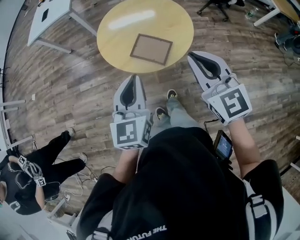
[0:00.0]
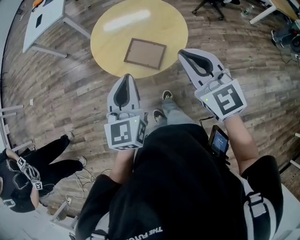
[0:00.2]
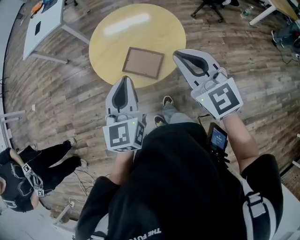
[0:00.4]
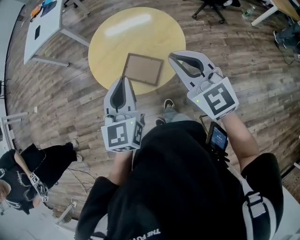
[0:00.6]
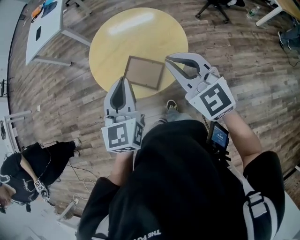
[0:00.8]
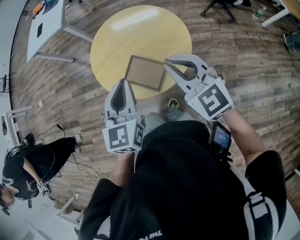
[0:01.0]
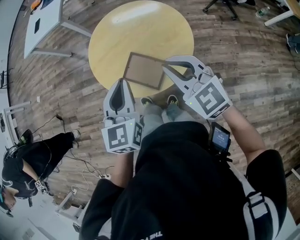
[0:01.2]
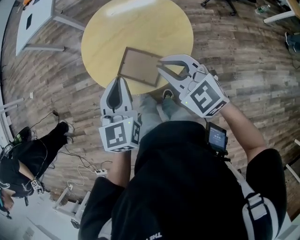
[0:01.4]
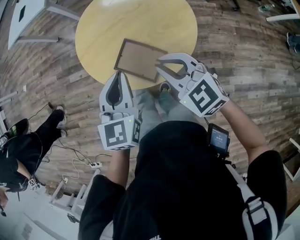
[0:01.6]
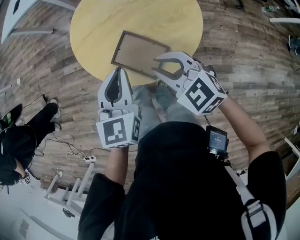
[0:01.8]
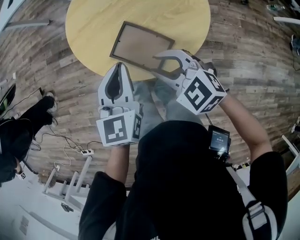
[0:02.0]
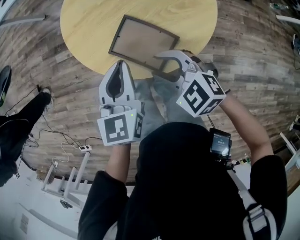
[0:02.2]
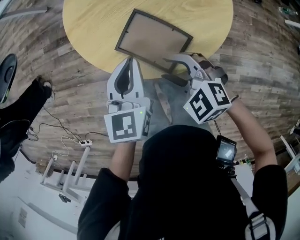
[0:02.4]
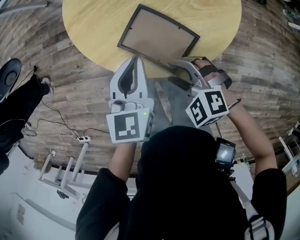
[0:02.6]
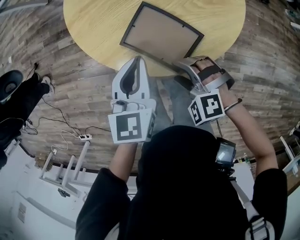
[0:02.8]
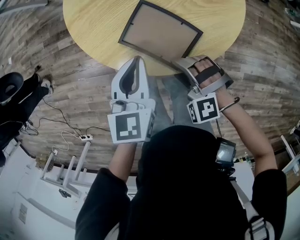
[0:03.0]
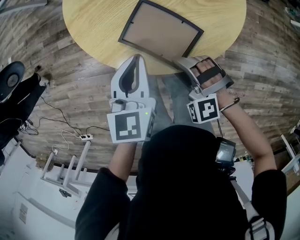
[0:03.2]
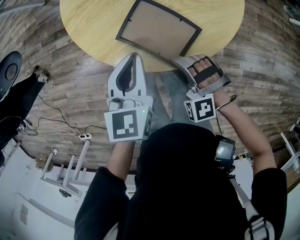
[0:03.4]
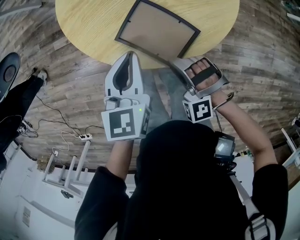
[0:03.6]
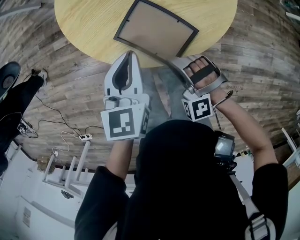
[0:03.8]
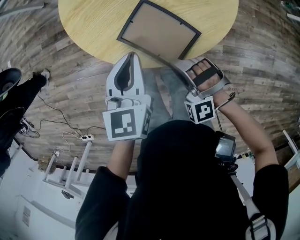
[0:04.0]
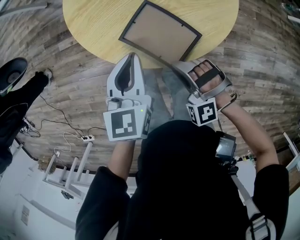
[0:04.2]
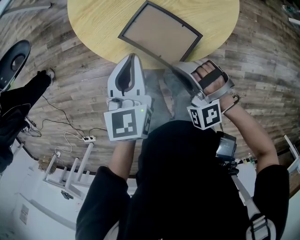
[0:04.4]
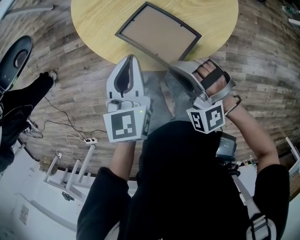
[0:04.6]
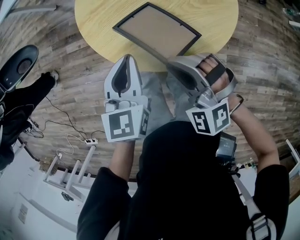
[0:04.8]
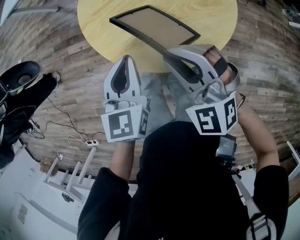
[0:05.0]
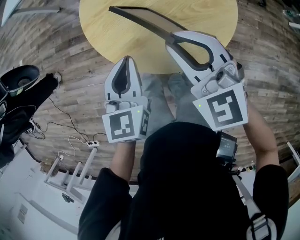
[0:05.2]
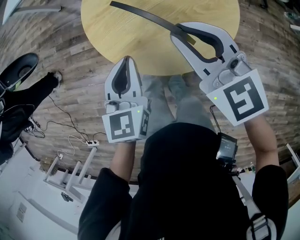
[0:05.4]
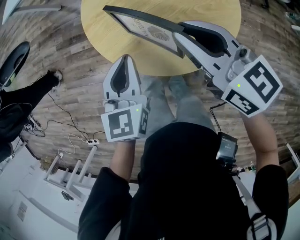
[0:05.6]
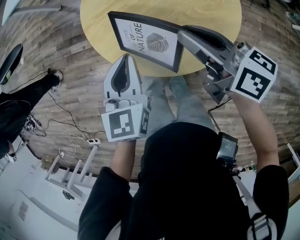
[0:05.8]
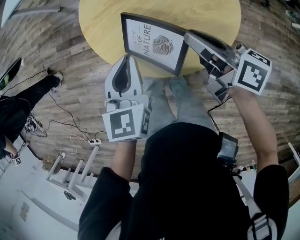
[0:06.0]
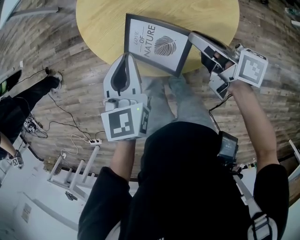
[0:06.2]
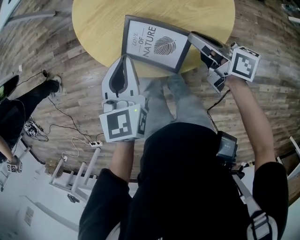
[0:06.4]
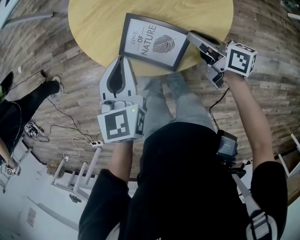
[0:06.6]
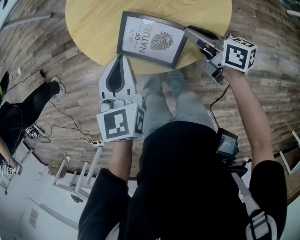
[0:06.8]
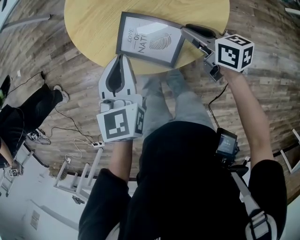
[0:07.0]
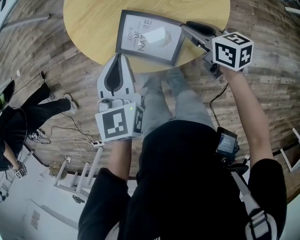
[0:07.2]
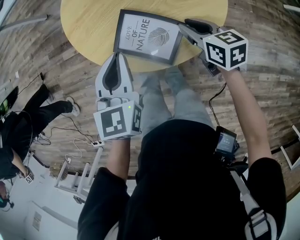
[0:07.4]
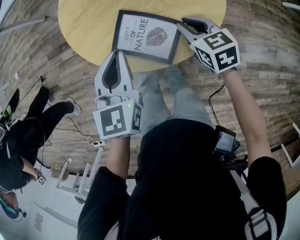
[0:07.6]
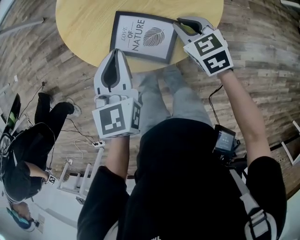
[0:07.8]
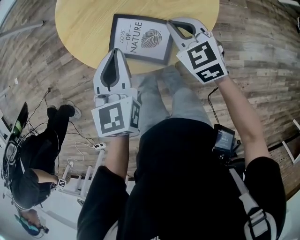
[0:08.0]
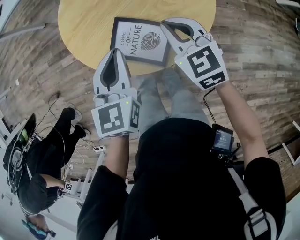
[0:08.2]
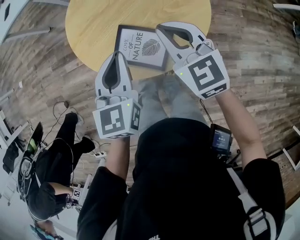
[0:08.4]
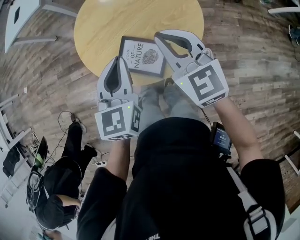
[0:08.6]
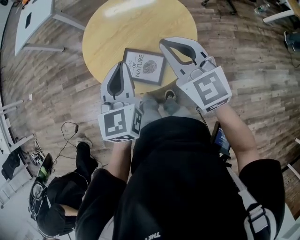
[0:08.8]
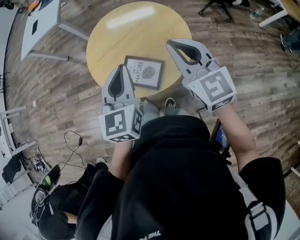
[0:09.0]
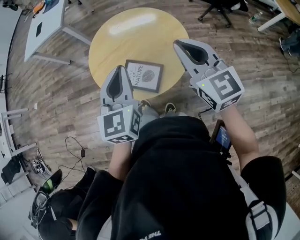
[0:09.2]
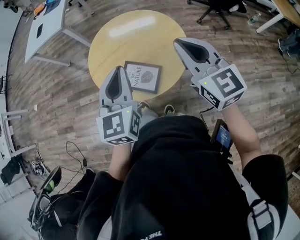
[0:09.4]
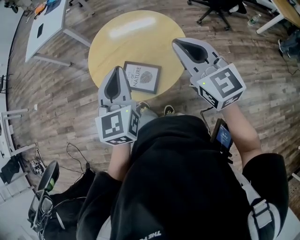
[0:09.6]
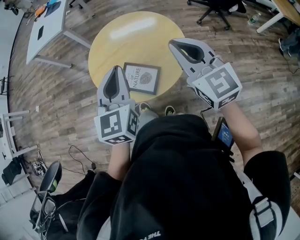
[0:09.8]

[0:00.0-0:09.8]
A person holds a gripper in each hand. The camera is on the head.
0:00.0 to 0:01.4: The left gripper shifts some 15 cm forward, to the right and downward; the right gripper heads forward and downward, covering some 15 cm, and rotates about 30 degrees.
0:01.4 to 0:02.8: The right gripper travels downward by about 25 cm, tips its fingers downward by about 30 degrees, and opens up. Meanwhile the left gripper goes roughly 15 cm downward.
0:02.8 to 0:04.2: The right gripper changes its angle by some 20 degrees, and closes its fingers.
0:04.2 to 0:05.6: The left gripper shifts by approximately 5 cm. Meanwhile the right gripper is displaced upward and forward by roughly 25 cm, and twists about 80 degrees clockwise, seen from behind.
0:05.6 to 0:07.0: The right gripper travels downward and to the right by roughly 20 cm, and swivels approximately 30 degrees.
0:07.0 to 0:08.4: The right gripper heads upward, covering some 15 cm, and rolls counterclockwise, seen from behind, by some 50 degrees, while the left gripper moves roughly 5 cm.
0:08.4 to 0:09.8: The left gripper moves upward, approximately 15 cm. Meanwhile the right gripper moves upward and to the right, roughly 20 cm.

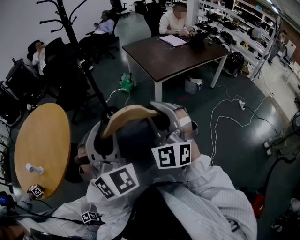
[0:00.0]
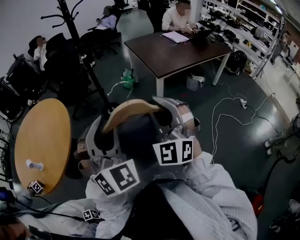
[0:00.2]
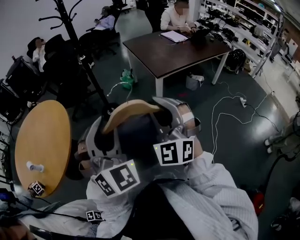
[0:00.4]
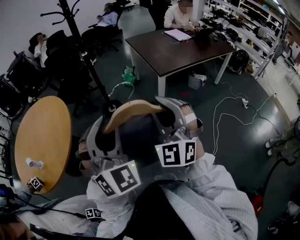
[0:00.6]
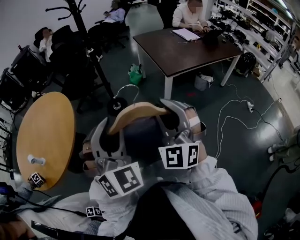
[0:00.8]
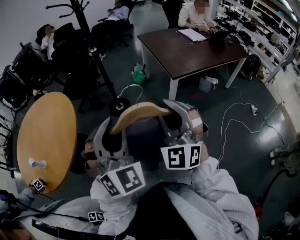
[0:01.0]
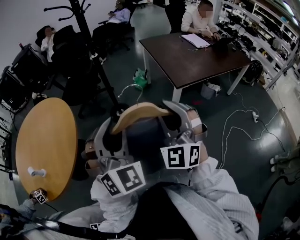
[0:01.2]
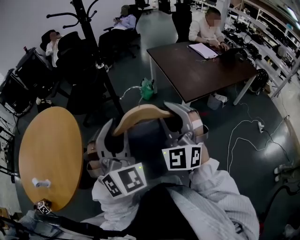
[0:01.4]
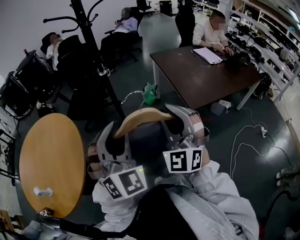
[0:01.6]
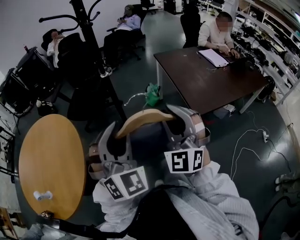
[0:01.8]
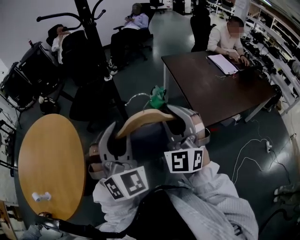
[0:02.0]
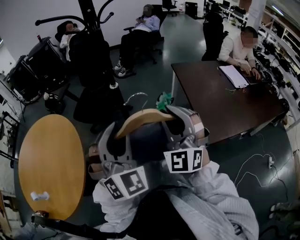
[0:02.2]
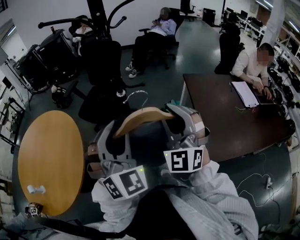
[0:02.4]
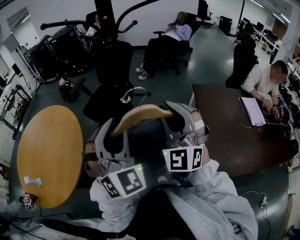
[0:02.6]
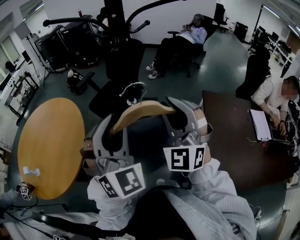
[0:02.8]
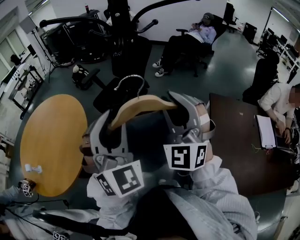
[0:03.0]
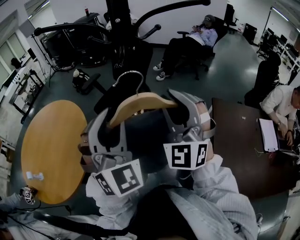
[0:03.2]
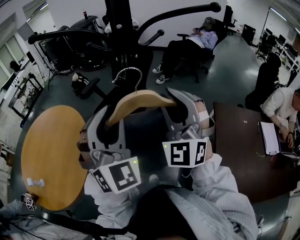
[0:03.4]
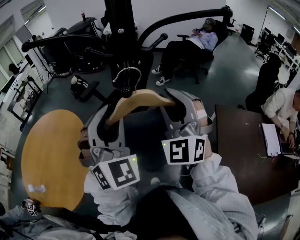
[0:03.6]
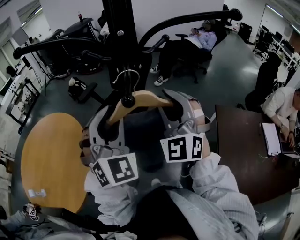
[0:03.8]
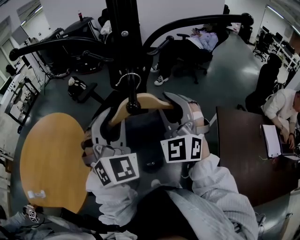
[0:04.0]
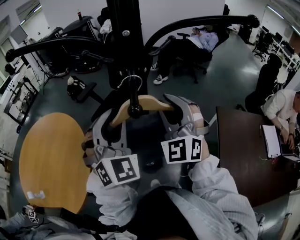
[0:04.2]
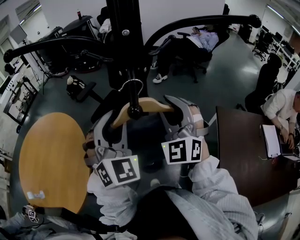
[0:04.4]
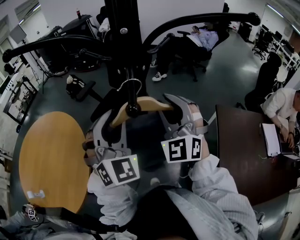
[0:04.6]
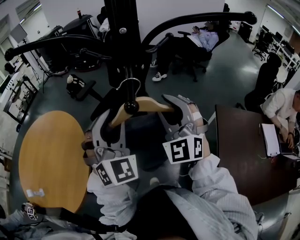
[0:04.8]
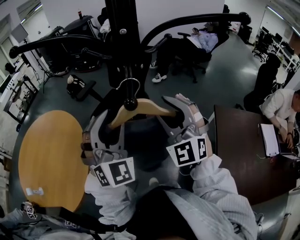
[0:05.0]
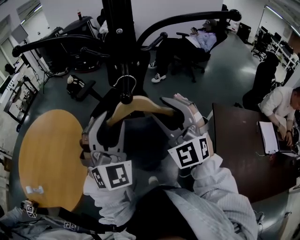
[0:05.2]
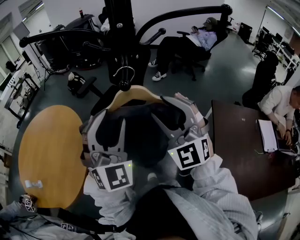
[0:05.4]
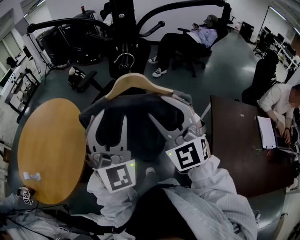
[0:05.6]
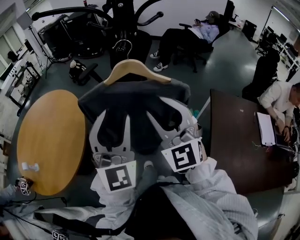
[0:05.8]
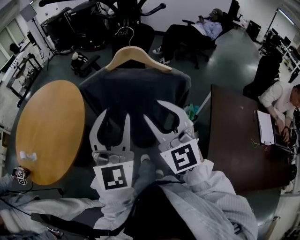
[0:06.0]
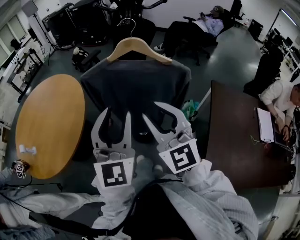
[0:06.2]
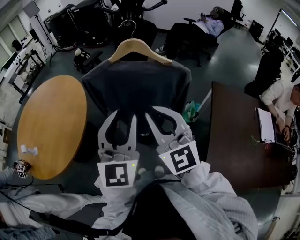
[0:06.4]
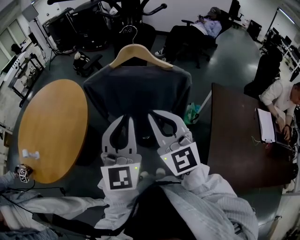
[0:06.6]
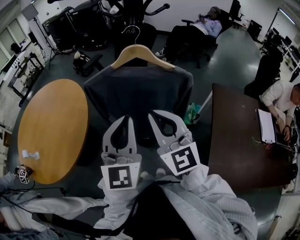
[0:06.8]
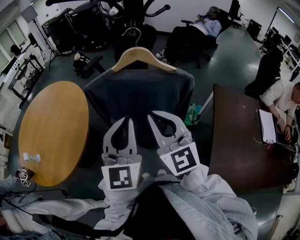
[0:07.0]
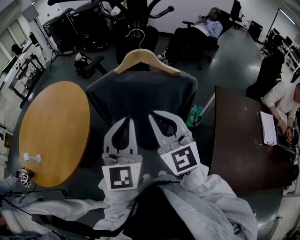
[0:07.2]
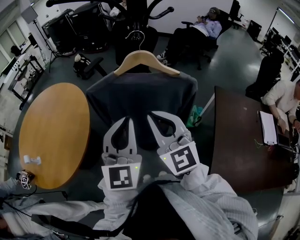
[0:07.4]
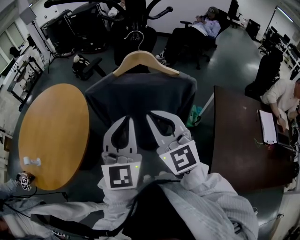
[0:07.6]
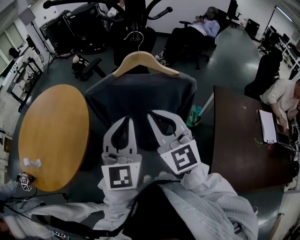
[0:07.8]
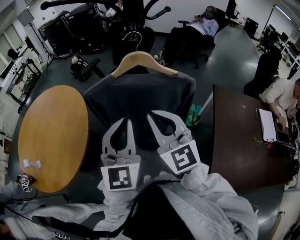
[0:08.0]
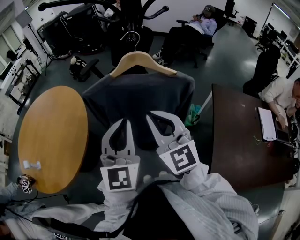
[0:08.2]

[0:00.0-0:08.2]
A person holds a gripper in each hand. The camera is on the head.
0:00.0 to 0:01.6: Both grippers move forward, some 35 cm.
0:01.6 to 0:03.2: The pair of grippers is taken approximately 50 cm. The right gripper swivels some 30 degrees. The left gripper swivels about 30 degrees.
0:03.2 to 0:05.0: The right gripper is displaced forward and downward by roughly 10 cm; the left gripper shifts approximately 10 cm forward.
0:05.0 to 0:06.6: Both grippers travel together backward, about 20 cm. The left gripper twists about 40 degrees counterclockwise, seen from behind, and closes; the right gripper rotates roughly 40 degrees, and closes.
0:06.6 to 0:08.2: There are only small adjustments of the grippers.

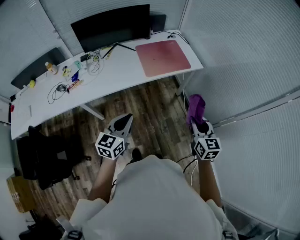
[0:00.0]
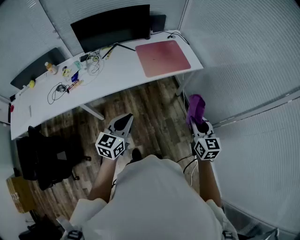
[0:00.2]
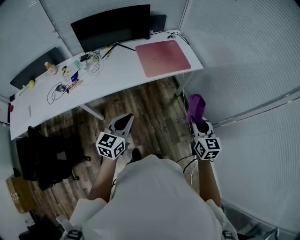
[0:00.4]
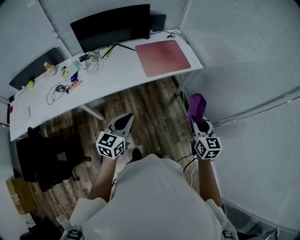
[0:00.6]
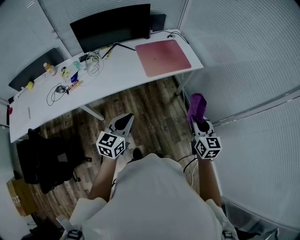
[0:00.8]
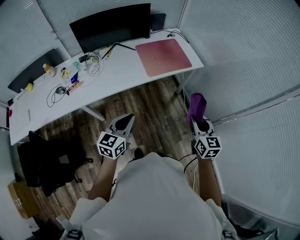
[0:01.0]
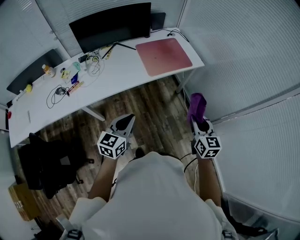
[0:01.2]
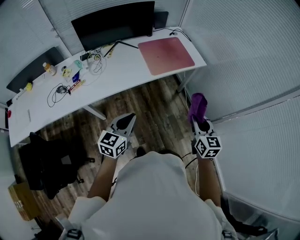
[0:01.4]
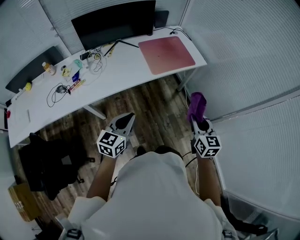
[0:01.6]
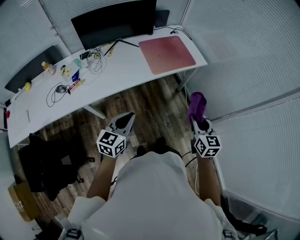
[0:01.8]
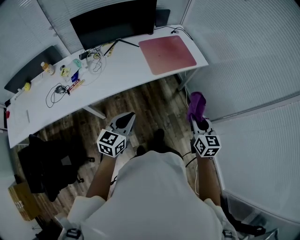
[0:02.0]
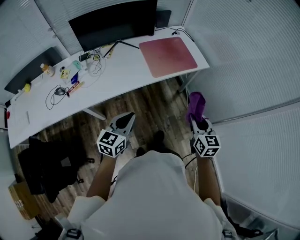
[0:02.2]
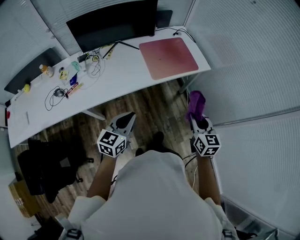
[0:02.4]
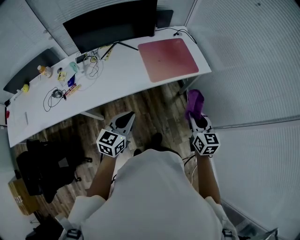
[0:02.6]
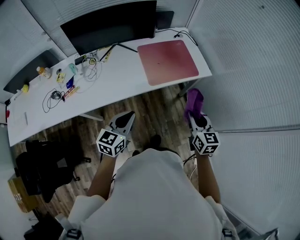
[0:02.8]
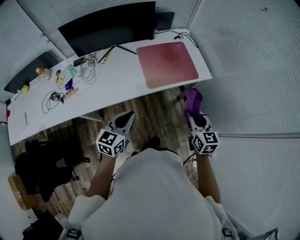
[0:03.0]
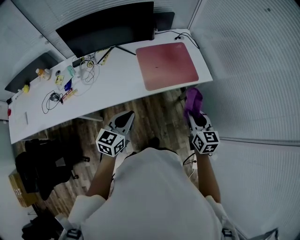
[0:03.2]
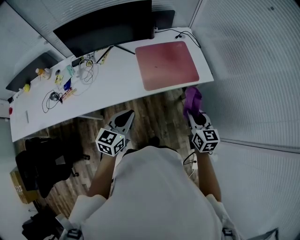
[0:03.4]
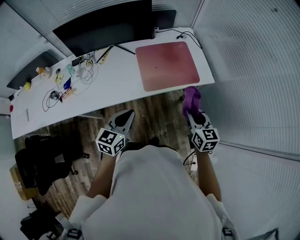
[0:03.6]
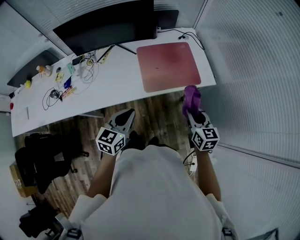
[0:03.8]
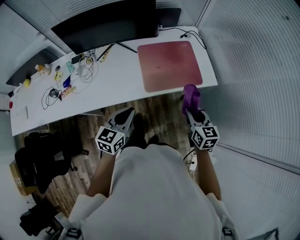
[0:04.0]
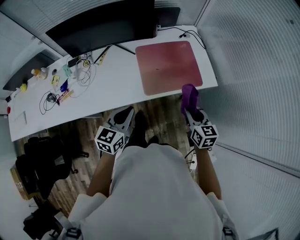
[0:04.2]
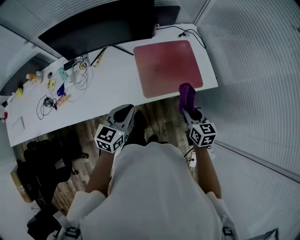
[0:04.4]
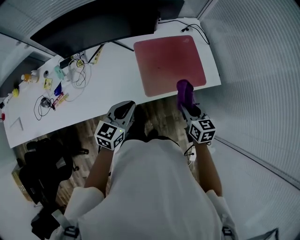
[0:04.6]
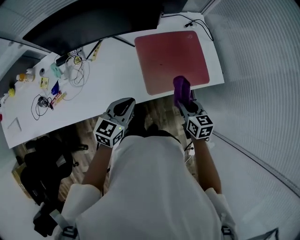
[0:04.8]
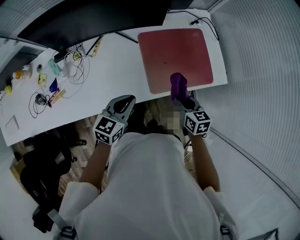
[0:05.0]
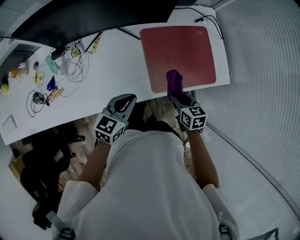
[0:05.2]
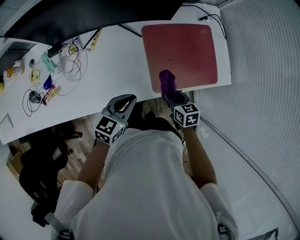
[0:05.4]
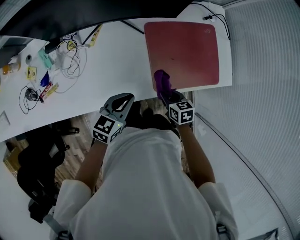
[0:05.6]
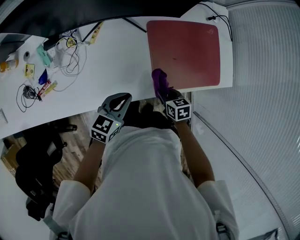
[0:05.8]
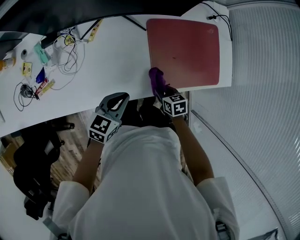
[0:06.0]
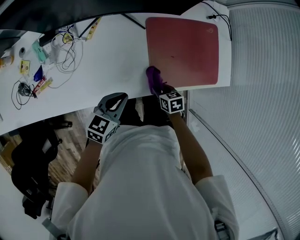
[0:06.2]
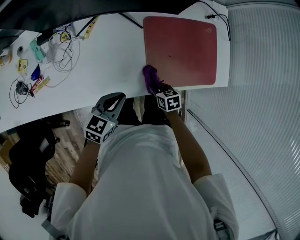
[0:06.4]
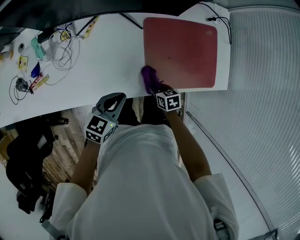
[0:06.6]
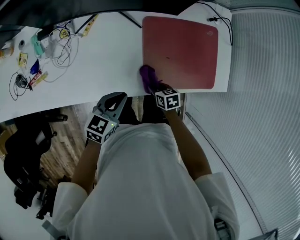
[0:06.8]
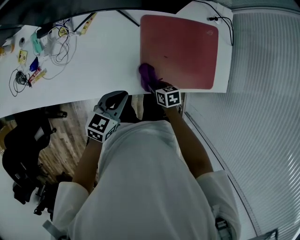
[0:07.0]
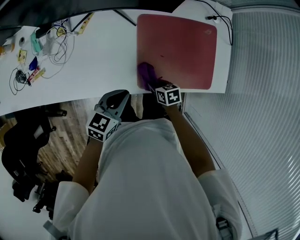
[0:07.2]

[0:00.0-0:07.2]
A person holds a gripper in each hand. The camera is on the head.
0:00.0 to 0:01.4: The grippers both shift to the left by about 5 cm.
0:01.4 to 0:02.8: Both grippers travel together forward, some 15 cm.
0:02.8 to 0:04.4: The left gripper heads forward, covering approximately 20 cm; the right gripper moves forward and downward, some 20 cm.
0:04.4 to 0:05.8: The right gripper goes approximately 30 cm downward and to the left, and changes its angle by some 30 degrees. The left gripper shifts about 20 cm downward, to the left and forward.
0:05.8 to 0:07.2: The right gripper heads downward, covering about 5 cm, while the left gripper travels to the right by approximately 10 cm.
